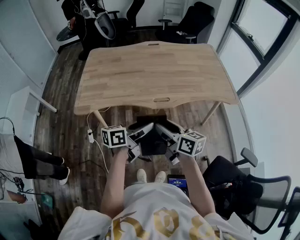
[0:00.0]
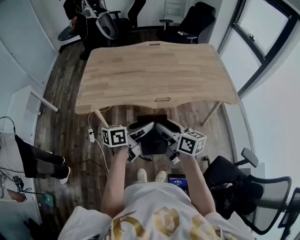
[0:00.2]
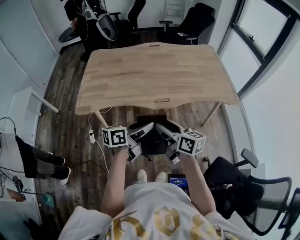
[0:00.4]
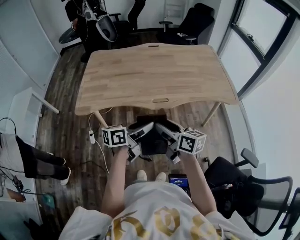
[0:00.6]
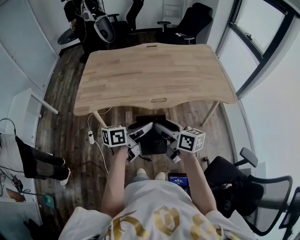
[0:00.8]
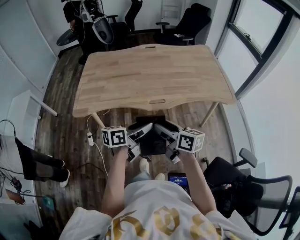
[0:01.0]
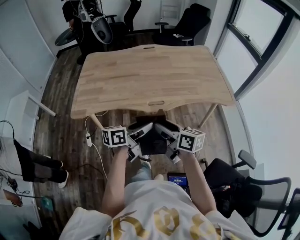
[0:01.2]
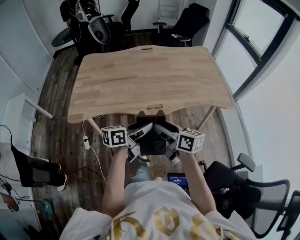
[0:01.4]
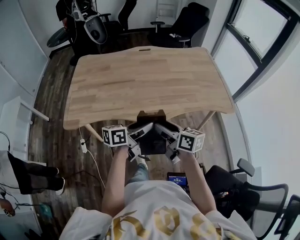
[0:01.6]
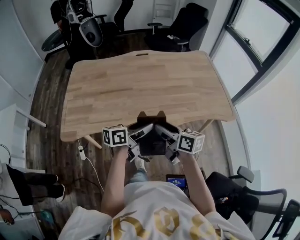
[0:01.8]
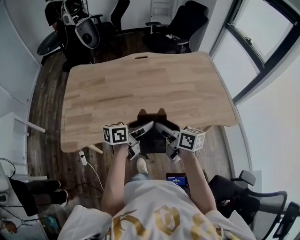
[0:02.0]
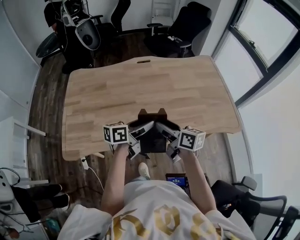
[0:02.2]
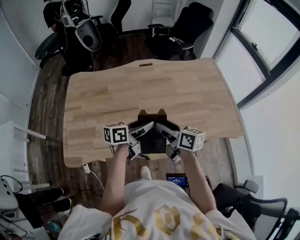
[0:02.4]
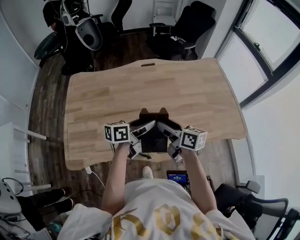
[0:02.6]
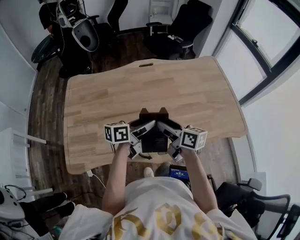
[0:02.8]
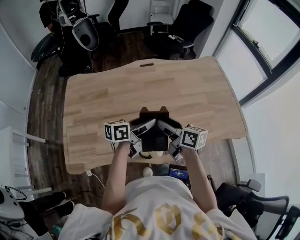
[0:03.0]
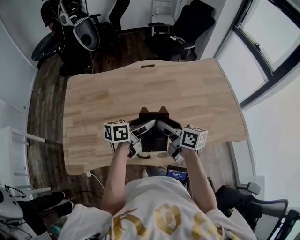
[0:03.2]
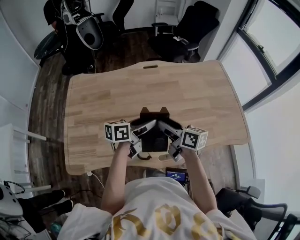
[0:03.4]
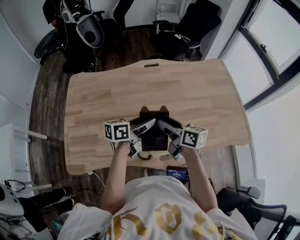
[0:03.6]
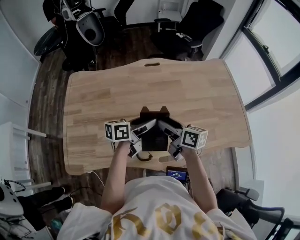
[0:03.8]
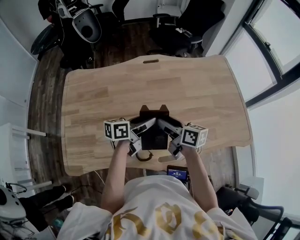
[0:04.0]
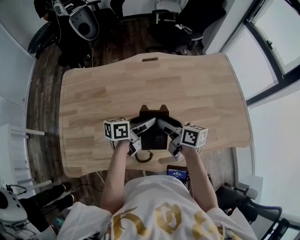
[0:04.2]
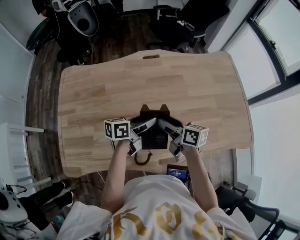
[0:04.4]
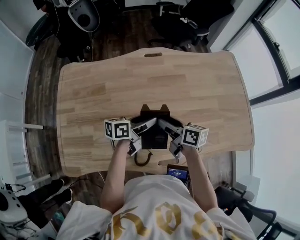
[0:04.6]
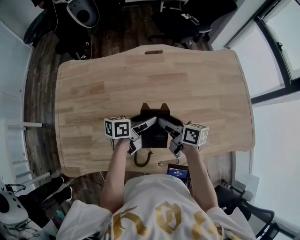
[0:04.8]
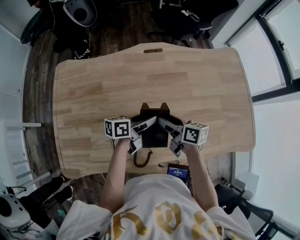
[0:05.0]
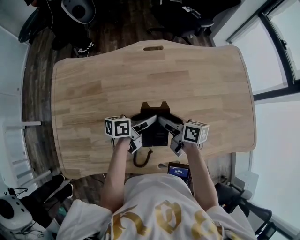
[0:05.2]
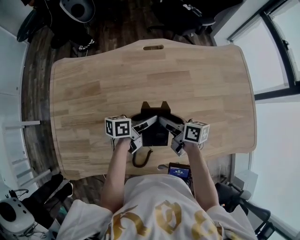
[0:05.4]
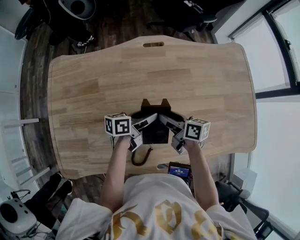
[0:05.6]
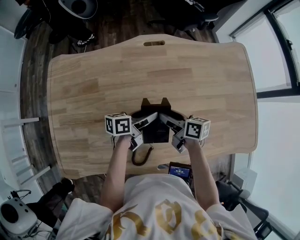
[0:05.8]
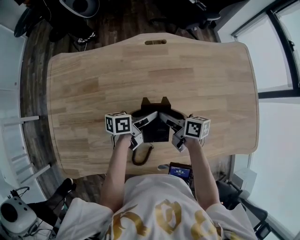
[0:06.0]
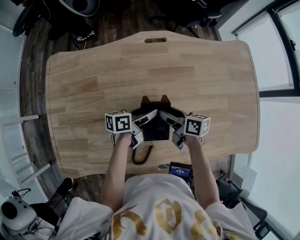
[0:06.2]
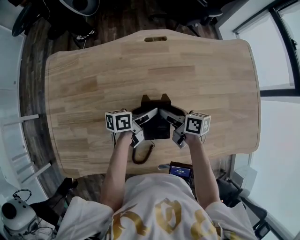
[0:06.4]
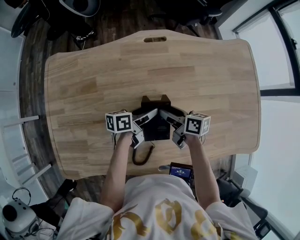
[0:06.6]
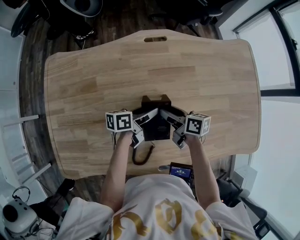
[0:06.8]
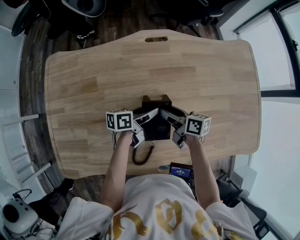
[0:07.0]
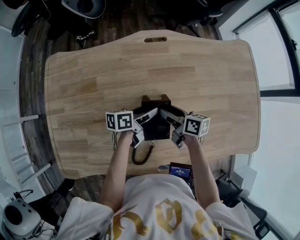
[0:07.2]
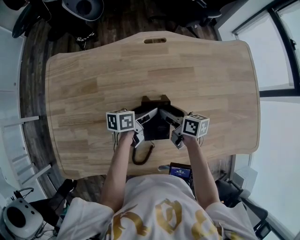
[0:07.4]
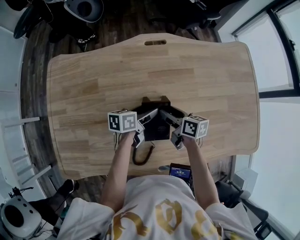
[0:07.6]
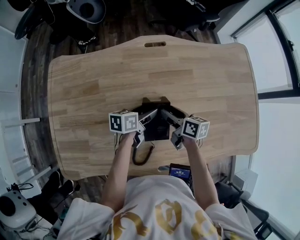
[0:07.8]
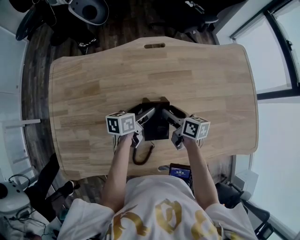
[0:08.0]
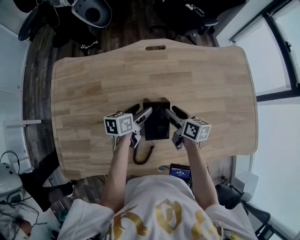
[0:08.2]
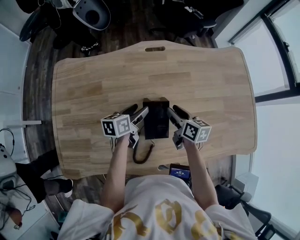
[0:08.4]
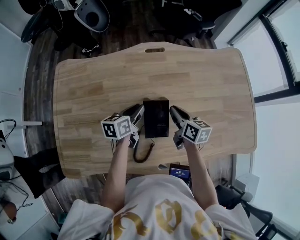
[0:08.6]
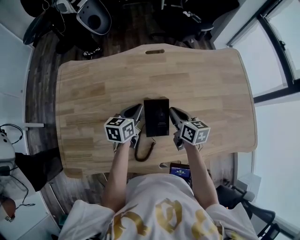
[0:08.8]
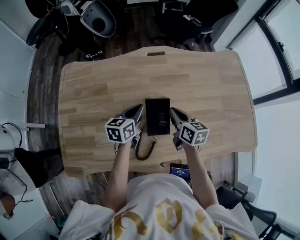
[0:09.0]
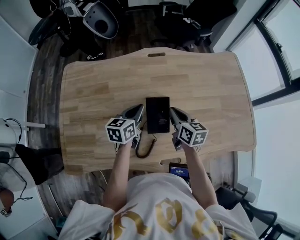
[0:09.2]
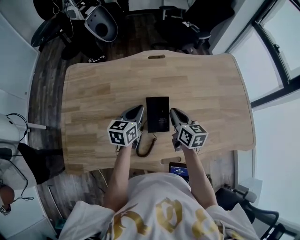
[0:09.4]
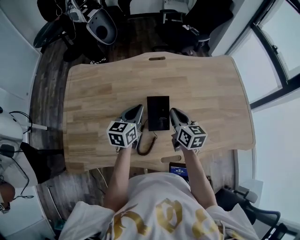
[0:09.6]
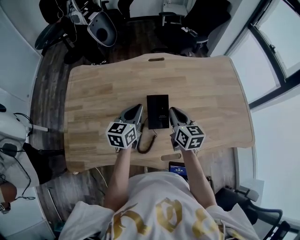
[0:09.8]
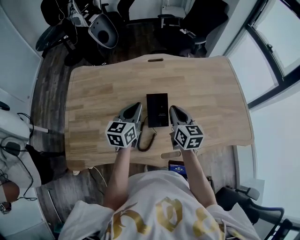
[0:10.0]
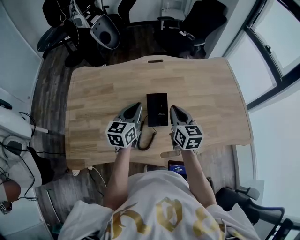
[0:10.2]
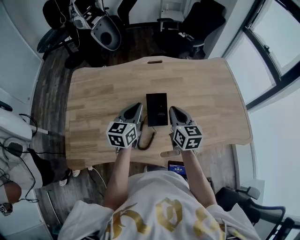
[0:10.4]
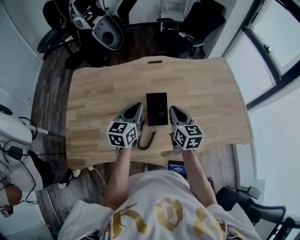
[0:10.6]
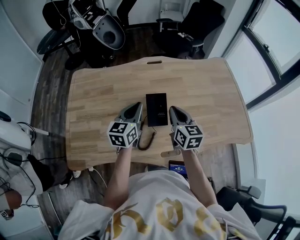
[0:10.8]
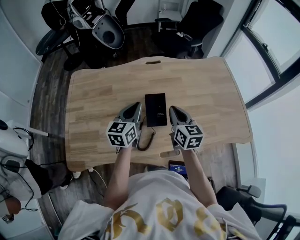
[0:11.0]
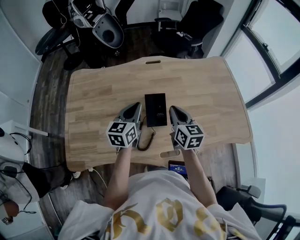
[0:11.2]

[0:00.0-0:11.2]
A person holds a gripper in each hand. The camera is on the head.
0:00.0 to 0:01.6: The grippers both shift forward by some 10 cm.
0:01.6 to 0:03.2: The grippers both shift forward by about 30 cm.
0:03.2 to 0:04.8: The right gripper shifts some 15 cm forward and downward. The left gripper shifts some 15 cm downward and forward.
0:04.8 to 0:06.4: The grippers both shift downward and forward by roughly 10 cm.
0:06.4 to 0:08.0: The grippers move only a little.
0:08.0 to 0:09.6: The two grippers go about 15 cm upward and backward. The right gripper rotates roughly 30 degrees, and closes. The left gripper rotates some 30 degrees, and closes its fingers.
0:09.6 to 0:11.2: Both grippers travel together upward, about 5 cm.

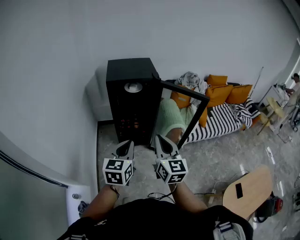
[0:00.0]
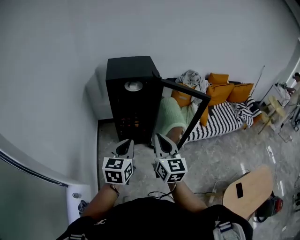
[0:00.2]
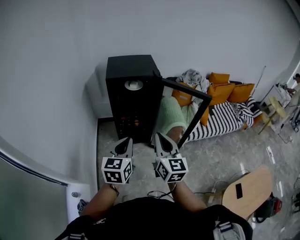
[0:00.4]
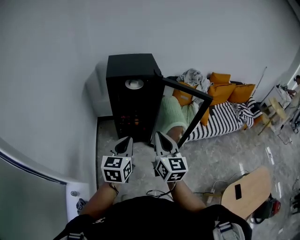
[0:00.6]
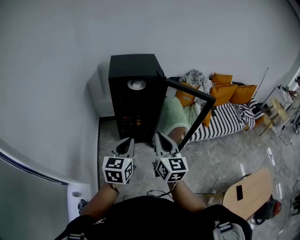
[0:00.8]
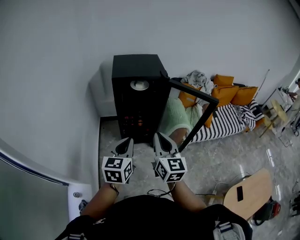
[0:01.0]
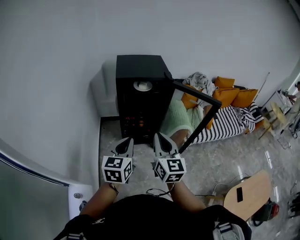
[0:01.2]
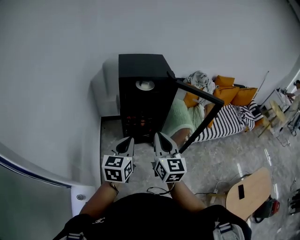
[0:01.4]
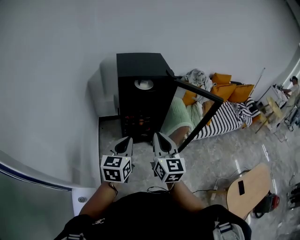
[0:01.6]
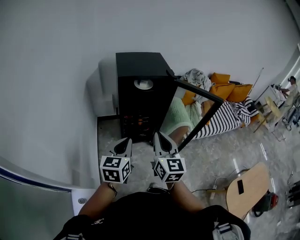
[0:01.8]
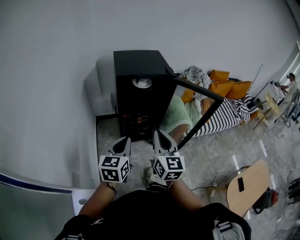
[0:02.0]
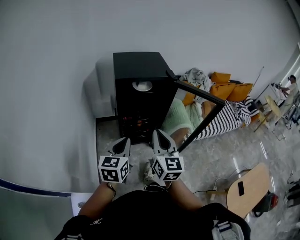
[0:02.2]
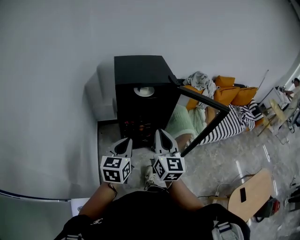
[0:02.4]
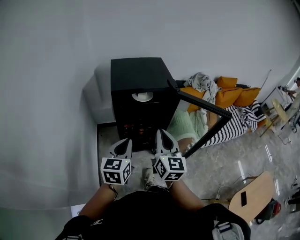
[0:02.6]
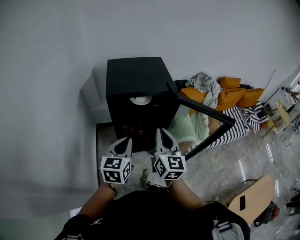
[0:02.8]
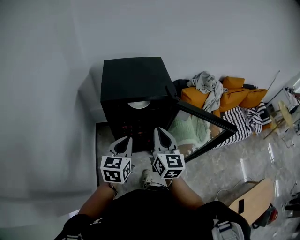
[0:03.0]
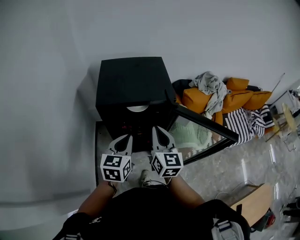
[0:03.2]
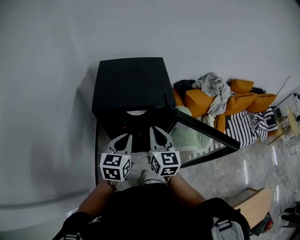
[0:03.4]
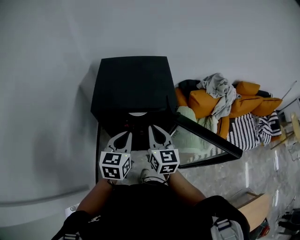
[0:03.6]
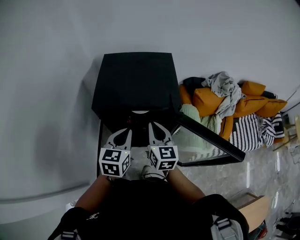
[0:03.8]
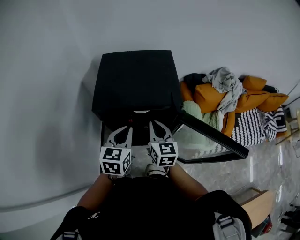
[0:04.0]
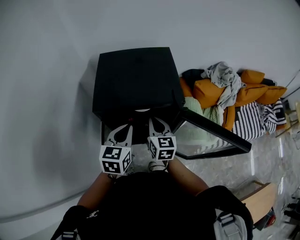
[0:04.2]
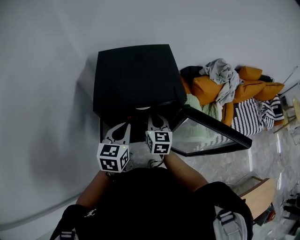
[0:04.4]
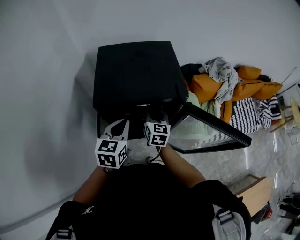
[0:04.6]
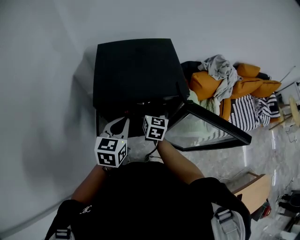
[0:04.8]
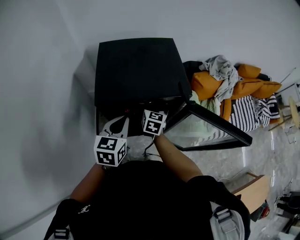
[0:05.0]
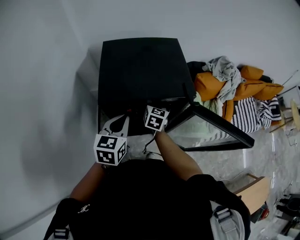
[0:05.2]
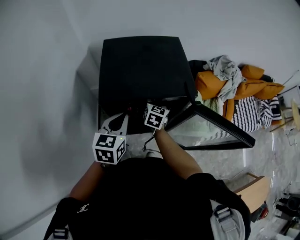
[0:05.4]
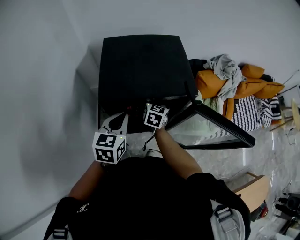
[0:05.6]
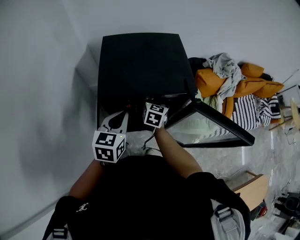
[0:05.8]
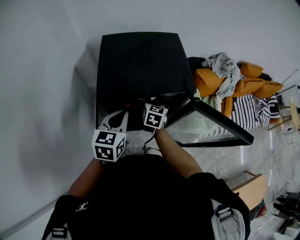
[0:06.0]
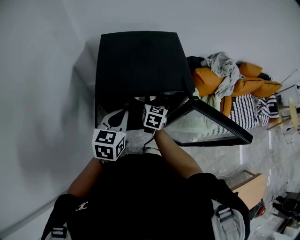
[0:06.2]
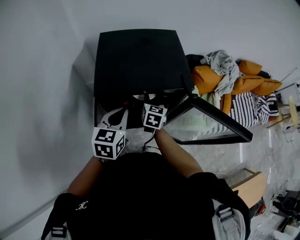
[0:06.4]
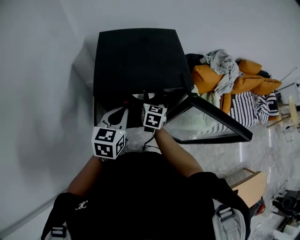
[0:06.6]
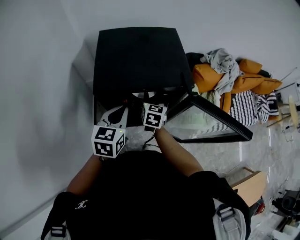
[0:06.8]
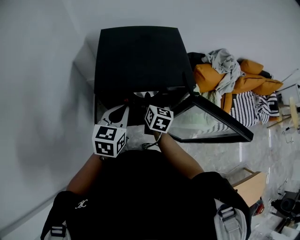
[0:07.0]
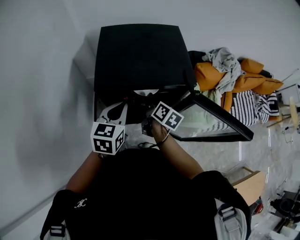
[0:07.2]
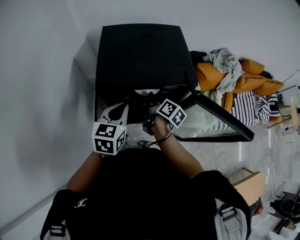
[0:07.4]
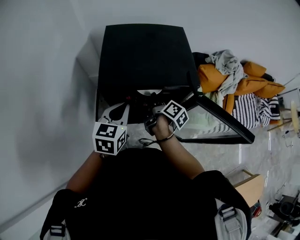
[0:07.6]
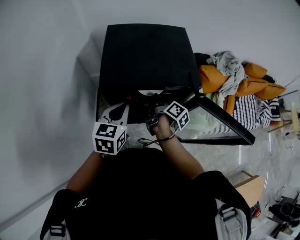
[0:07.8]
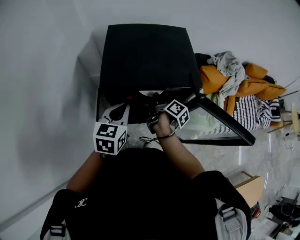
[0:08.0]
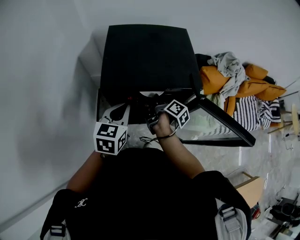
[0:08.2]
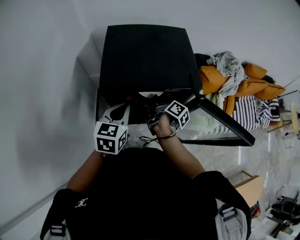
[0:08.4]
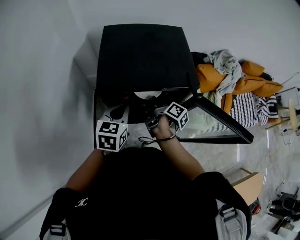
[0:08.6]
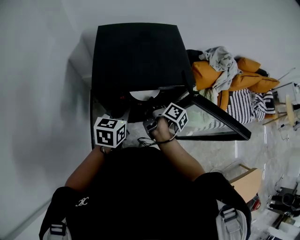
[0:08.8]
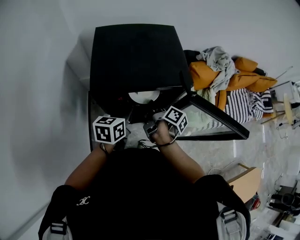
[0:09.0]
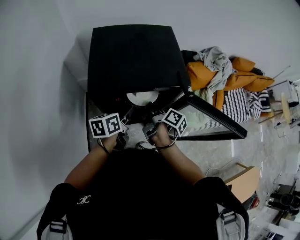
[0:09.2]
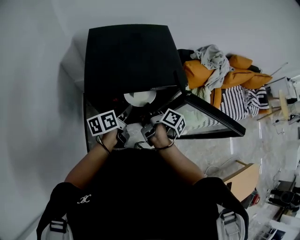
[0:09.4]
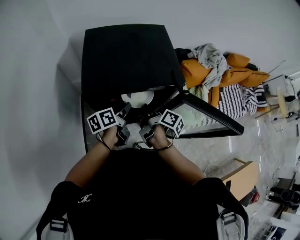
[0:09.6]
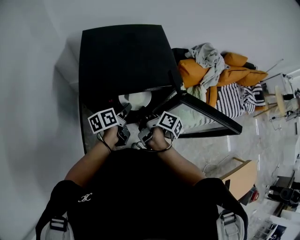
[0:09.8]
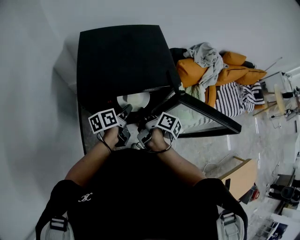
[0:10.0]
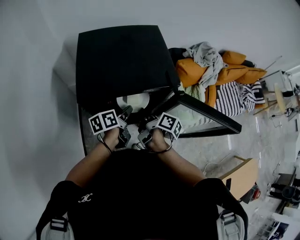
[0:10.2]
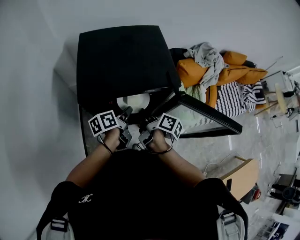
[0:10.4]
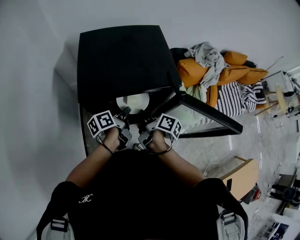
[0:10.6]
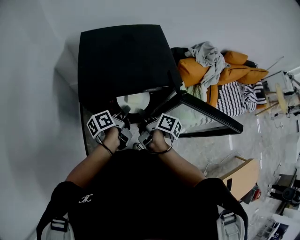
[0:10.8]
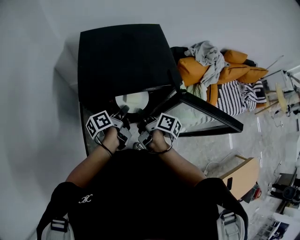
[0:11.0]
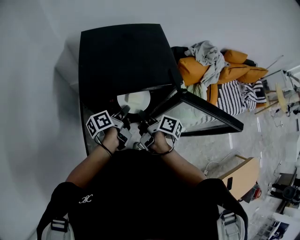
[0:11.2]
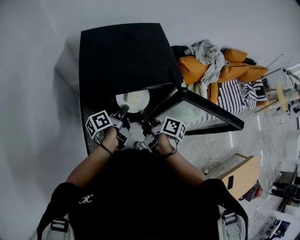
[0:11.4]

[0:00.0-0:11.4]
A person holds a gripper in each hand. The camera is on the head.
0:00.0 to 0:01.4: Both grippers travel together to the left, some 10 cm.
0:01.4 to 0:02.8: Both grippers travel together forward, roughly 20 cm.
0:02.8 to 0:04.2: The right gripper travels forward and downward by roughly 25 cm. Meanwhile the left gripper shifts some 20 cm forward.
0:04.2 to 0:05.6: The right gripper moves forward and downward, some 10 cm, turns by about 20 degrees, and opens, while the left gripper moves to the left, roughly 5 cm.
0:05.6 to 0:07.2: The right gripper is displaced backward by some 5 cm, changes its angle by roughly 40 degrees, and closes.
0:07.2 to 0:08.6: The right gripper swivels some 30 degrees.
0:08.6 to 0:10.0: The left gripper is displaced downward and to the right by approximately 10 cm, rotates around the line of its fingers by some 50 degrees, counterclockwise from behind, and opens up. Meanwhile the right gripper moves about 5 cm.
0:10.0 to 0:11.4: The left gripper rotates some 20 degrees, and closes.

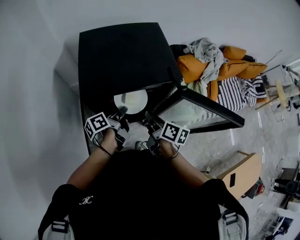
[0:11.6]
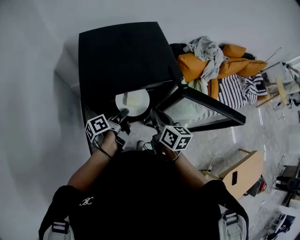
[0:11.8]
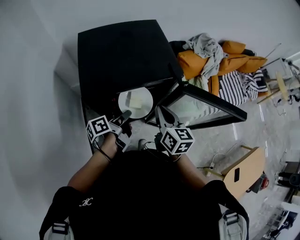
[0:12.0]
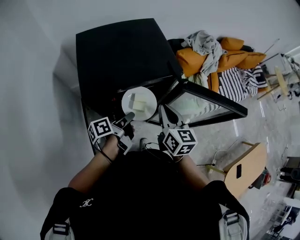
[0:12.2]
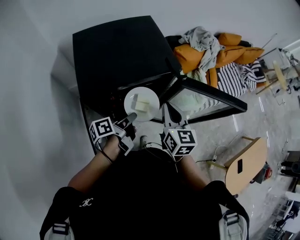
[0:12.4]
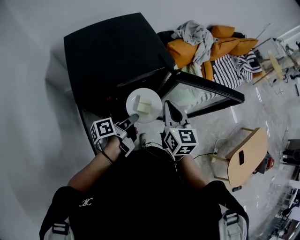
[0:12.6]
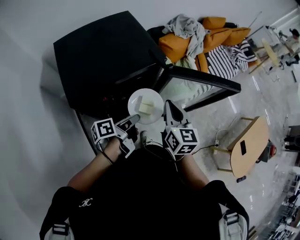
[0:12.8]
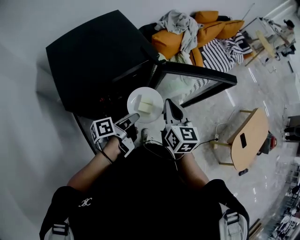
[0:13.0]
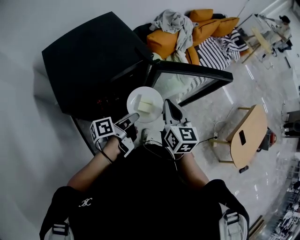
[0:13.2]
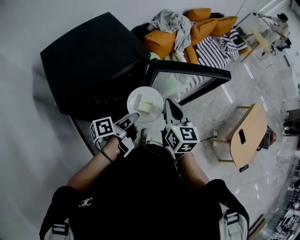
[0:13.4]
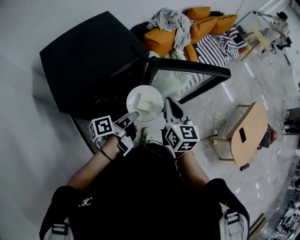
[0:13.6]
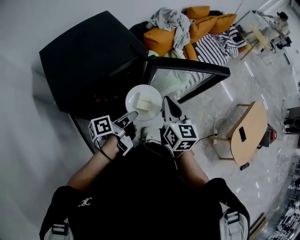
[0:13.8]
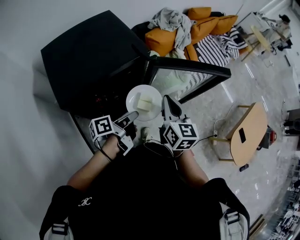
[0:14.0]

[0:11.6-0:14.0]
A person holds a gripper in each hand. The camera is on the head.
0:11.6 to 0:12.8: The right gripper shifts by about 15 cm, and swivels roughly 50 degrees, while the left gripper shifts by about 10 cm, and swivels some 30 degrees.
0:12.8 to 0:14.0: The grippers move only a little.
